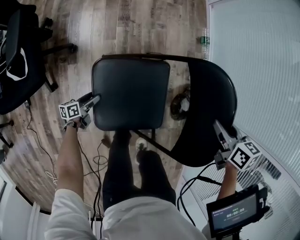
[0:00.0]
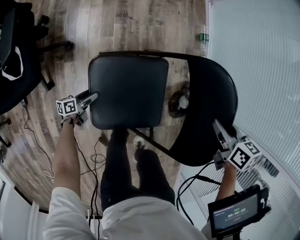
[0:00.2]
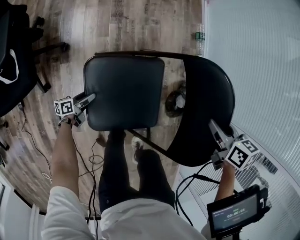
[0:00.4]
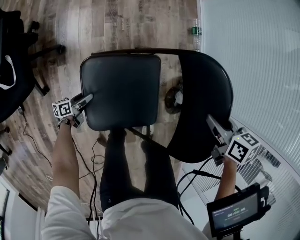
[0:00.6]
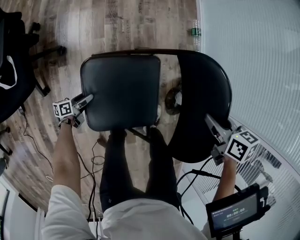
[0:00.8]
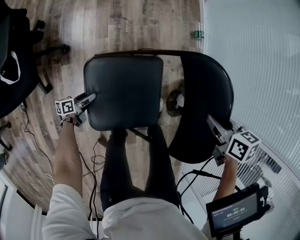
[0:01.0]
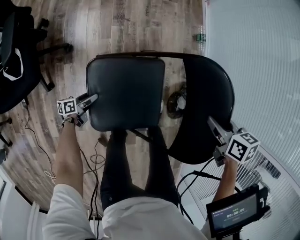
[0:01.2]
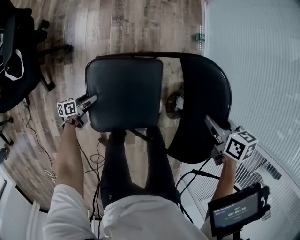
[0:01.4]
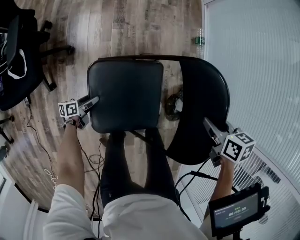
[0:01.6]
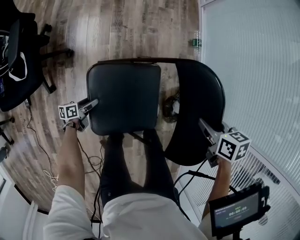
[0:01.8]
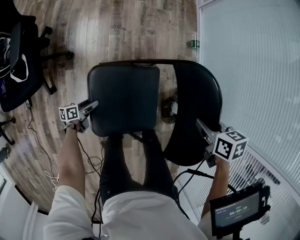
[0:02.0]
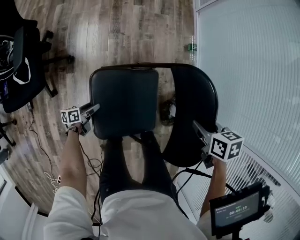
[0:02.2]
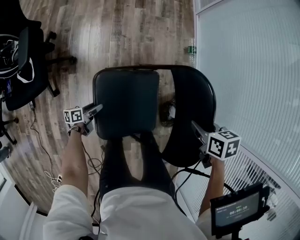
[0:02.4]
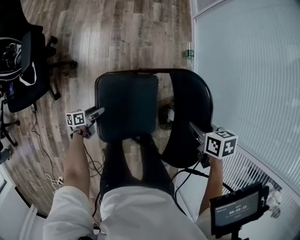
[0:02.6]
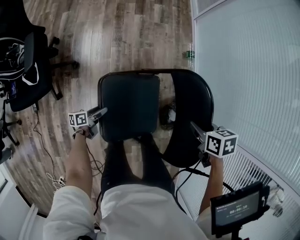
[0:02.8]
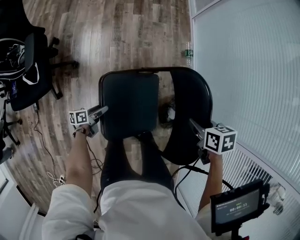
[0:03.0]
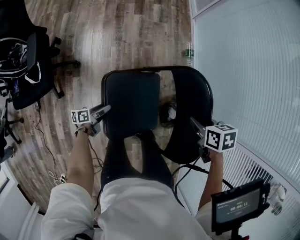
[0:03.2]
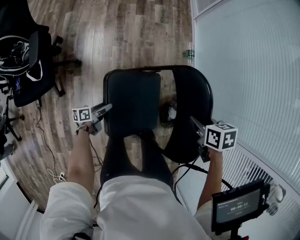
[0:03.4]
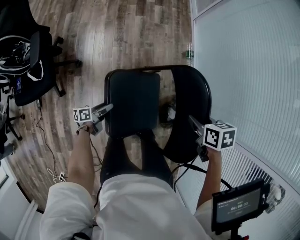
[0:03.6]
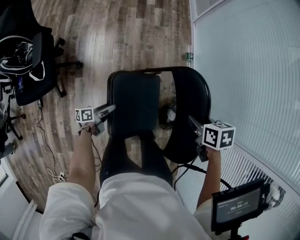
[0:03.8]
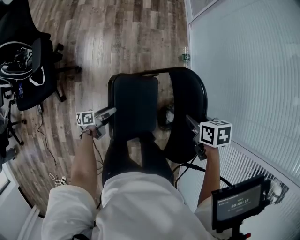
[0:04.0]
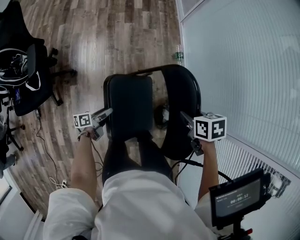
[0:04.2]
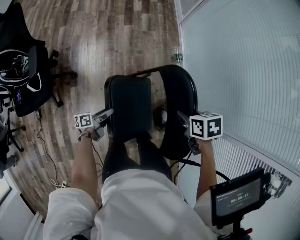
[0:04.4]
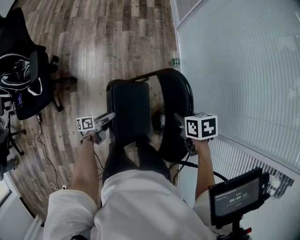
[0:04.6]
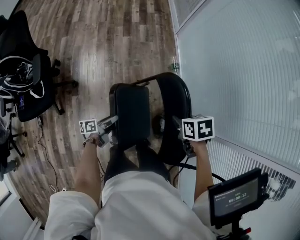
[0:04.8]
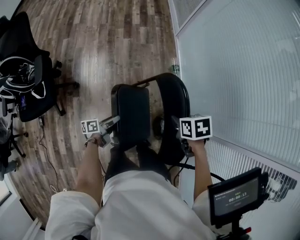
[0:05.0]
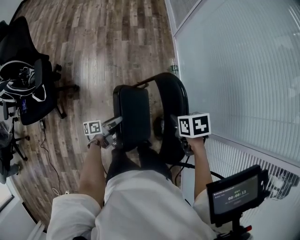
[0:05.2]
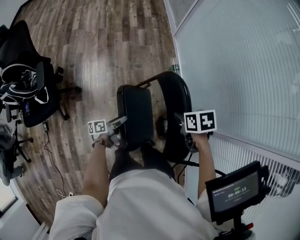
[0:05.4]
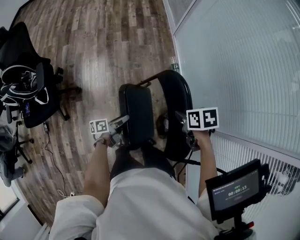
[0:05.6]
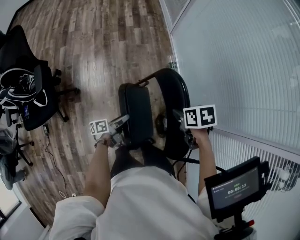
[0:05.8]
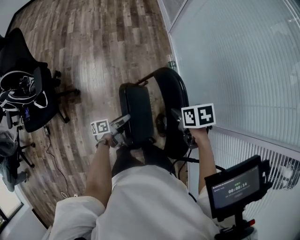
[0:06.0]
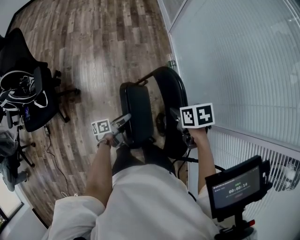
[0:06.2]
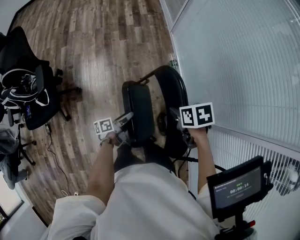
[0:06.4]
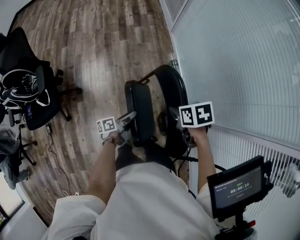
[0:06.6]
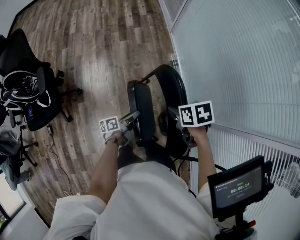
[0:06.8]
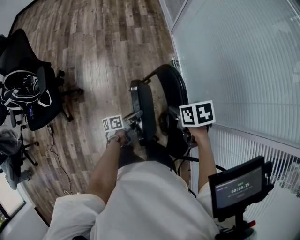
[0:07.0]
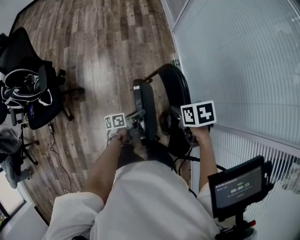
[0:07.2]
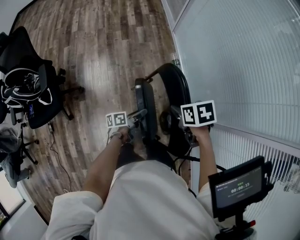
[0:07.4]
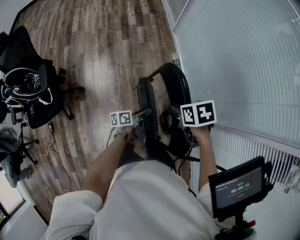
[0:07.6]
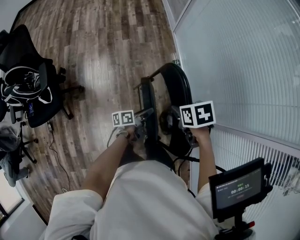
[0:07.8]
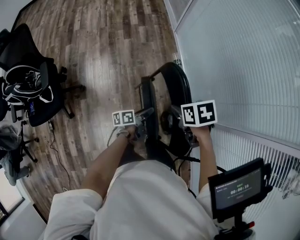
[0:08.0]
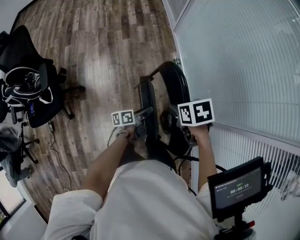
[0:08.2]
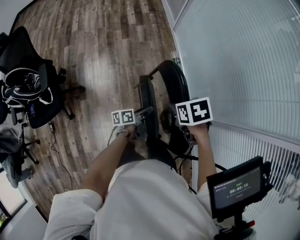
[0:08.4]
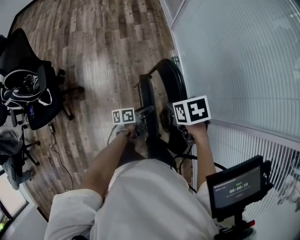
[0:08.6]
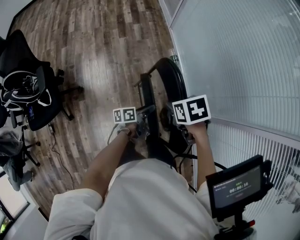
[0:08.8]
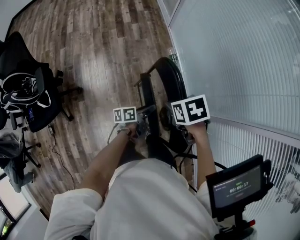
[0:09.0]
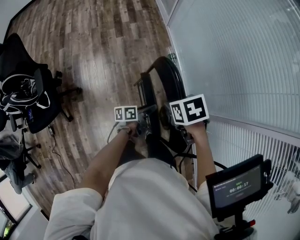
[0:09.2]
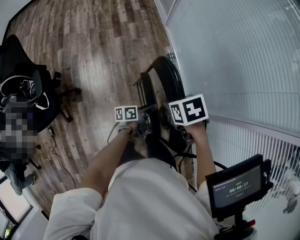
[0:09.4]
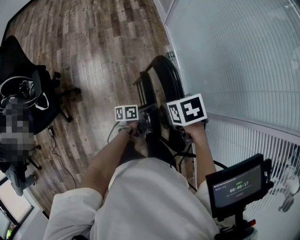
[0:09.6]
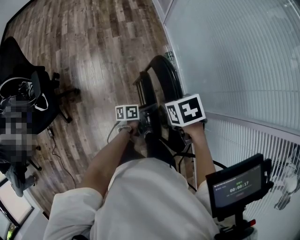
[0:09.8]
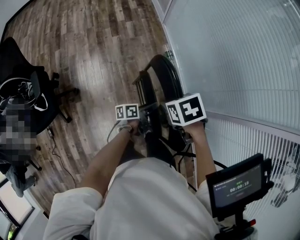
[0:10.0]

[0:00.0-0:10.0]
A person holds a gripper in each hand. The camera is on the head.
0:00.0 to 0:01.4: There are only small adjustments of the grippers.
0:01.4 to 0:02.8: The left gripper moves upward and to the right, approximately 10 cm.
0:02.8 to 0:04.2: The left gripper is displaced upward and to the right by approximately 10 cm.
0:04.2 to 0:05.8: The left gripper goes about 15 cm to the right and upward.
0:05.8 to 0:07.2: The left gripper is displaced to the right by roughly 5 cm.
0:07.2 to 0:08.6: The grippers move only a little.
0:08.6 to 0:10.0: The grippers move only a little.

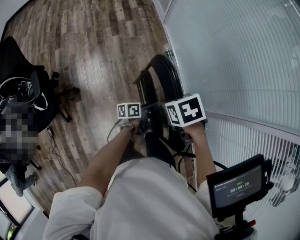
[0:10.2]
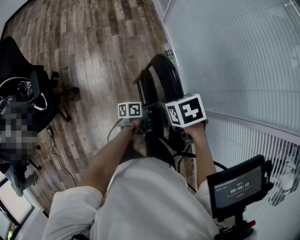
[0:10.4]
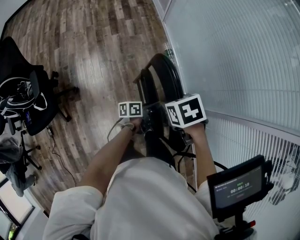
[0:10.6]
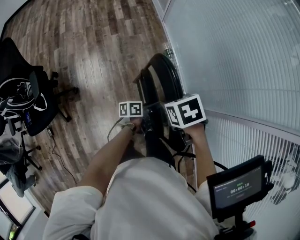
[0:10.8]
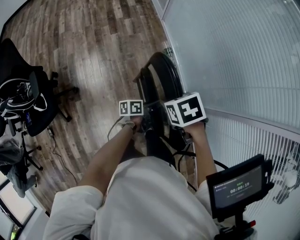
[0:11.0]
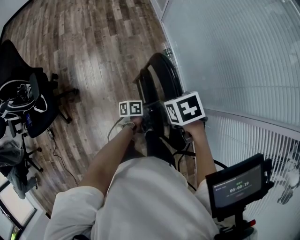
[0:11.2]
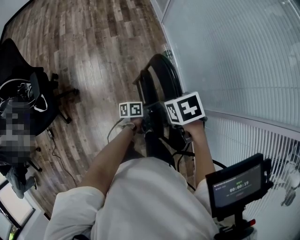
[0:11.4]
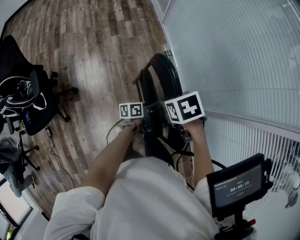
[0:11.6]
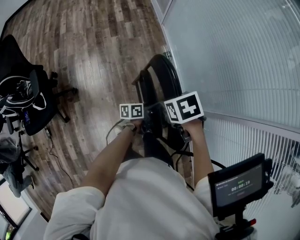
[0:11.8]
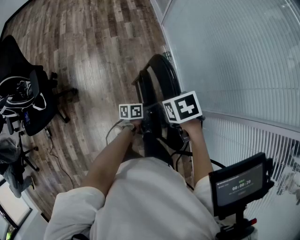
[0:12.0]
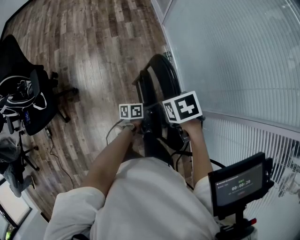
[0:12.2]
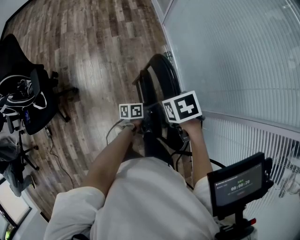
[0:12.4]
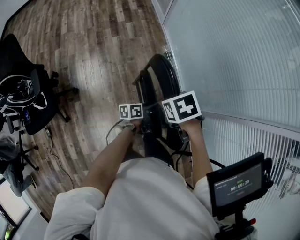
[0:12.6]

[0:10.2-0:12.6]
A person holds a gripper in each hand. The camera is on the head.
0:10.2 to 0:11.4: Both grippers stay put.
0:11.4 to 0:12.6: The grippers stay close to where they were, moving slightly.

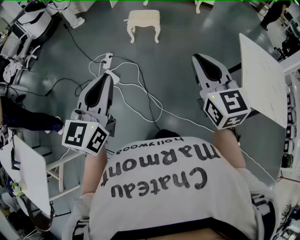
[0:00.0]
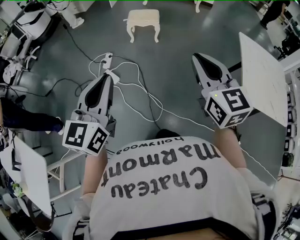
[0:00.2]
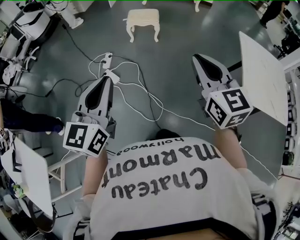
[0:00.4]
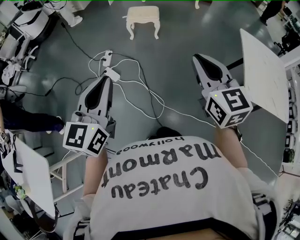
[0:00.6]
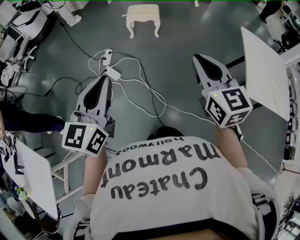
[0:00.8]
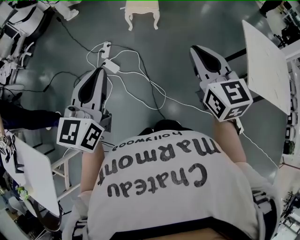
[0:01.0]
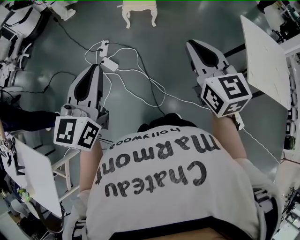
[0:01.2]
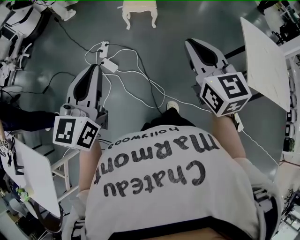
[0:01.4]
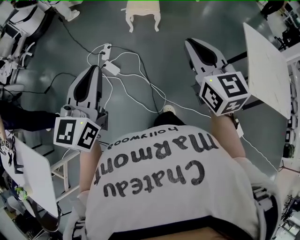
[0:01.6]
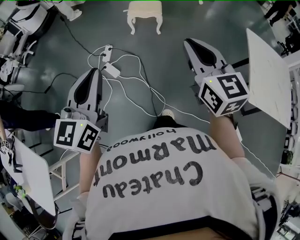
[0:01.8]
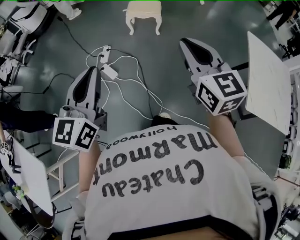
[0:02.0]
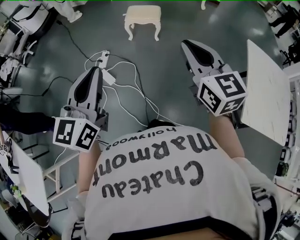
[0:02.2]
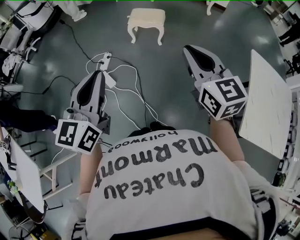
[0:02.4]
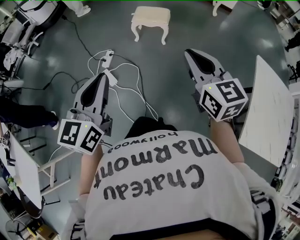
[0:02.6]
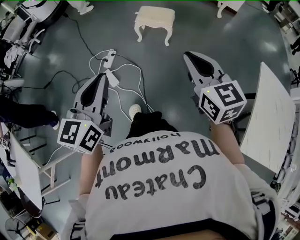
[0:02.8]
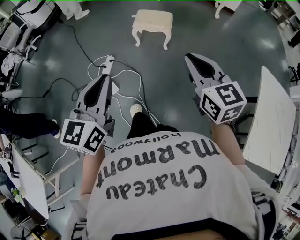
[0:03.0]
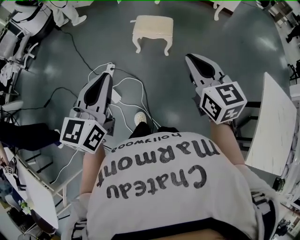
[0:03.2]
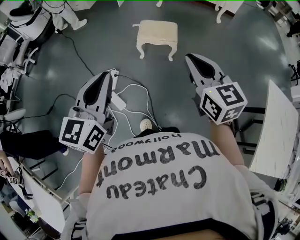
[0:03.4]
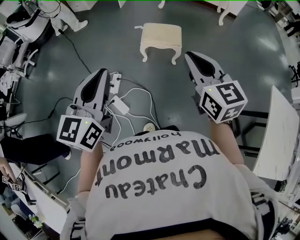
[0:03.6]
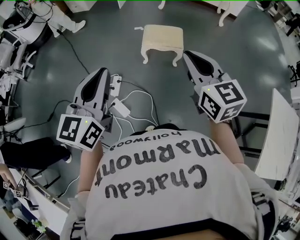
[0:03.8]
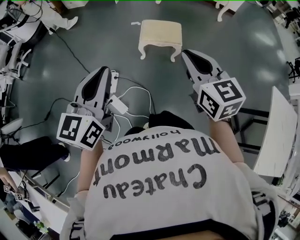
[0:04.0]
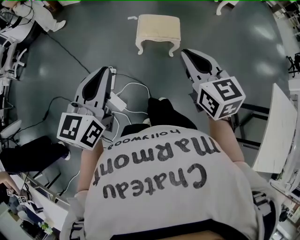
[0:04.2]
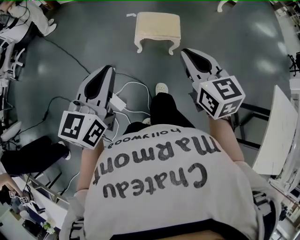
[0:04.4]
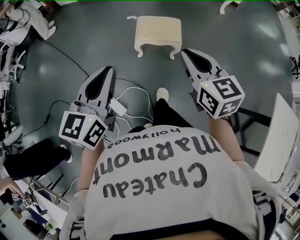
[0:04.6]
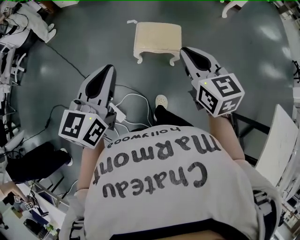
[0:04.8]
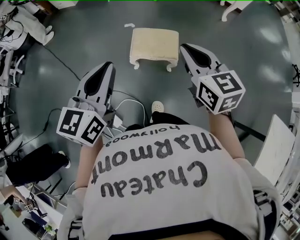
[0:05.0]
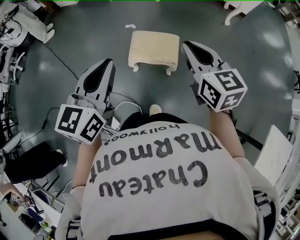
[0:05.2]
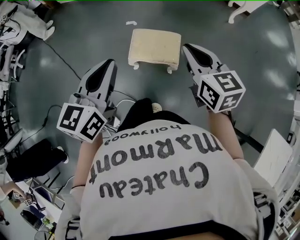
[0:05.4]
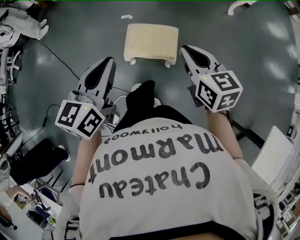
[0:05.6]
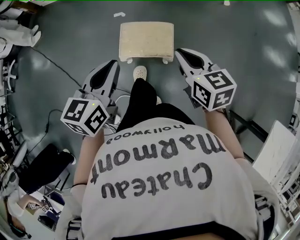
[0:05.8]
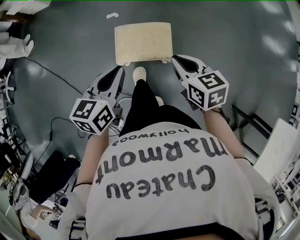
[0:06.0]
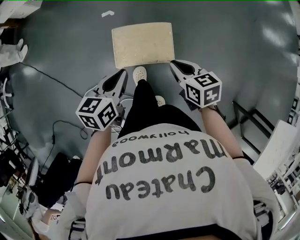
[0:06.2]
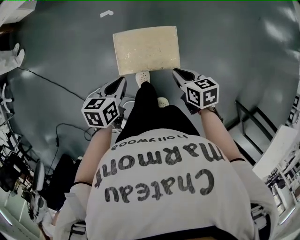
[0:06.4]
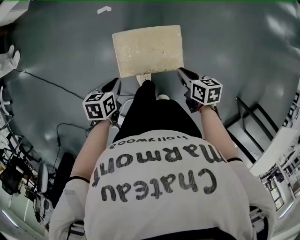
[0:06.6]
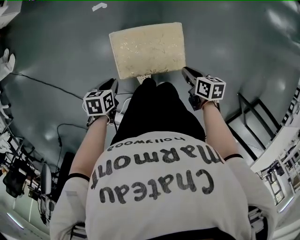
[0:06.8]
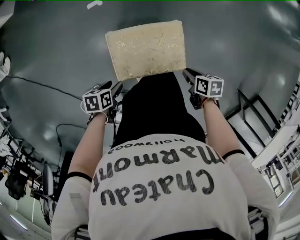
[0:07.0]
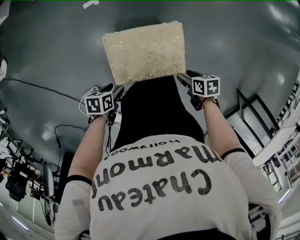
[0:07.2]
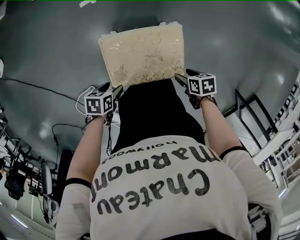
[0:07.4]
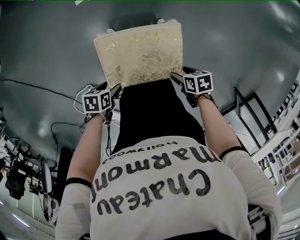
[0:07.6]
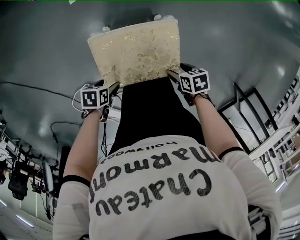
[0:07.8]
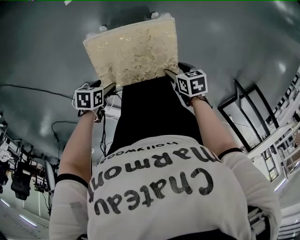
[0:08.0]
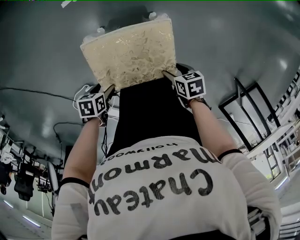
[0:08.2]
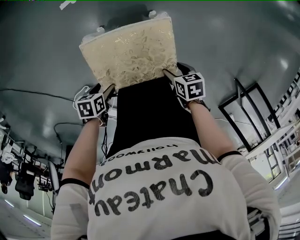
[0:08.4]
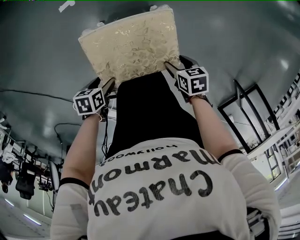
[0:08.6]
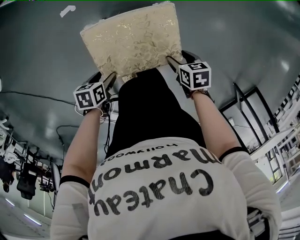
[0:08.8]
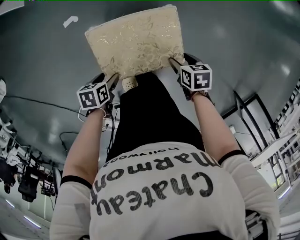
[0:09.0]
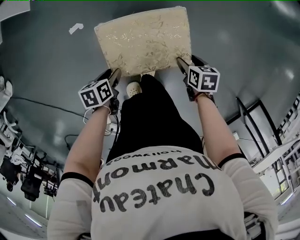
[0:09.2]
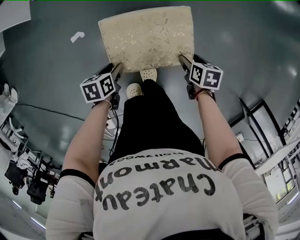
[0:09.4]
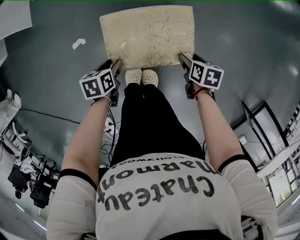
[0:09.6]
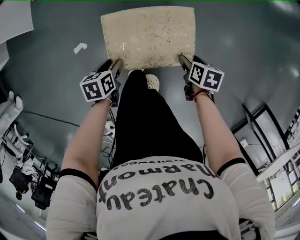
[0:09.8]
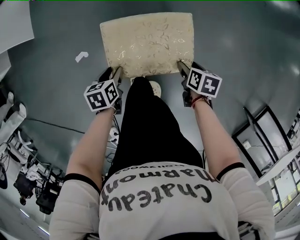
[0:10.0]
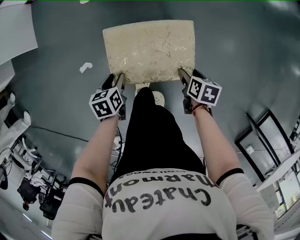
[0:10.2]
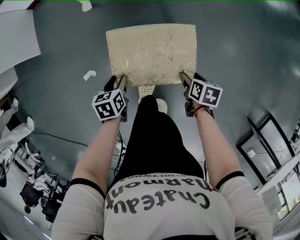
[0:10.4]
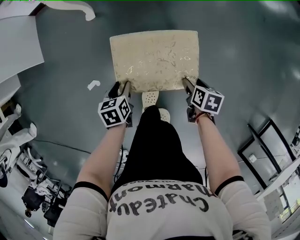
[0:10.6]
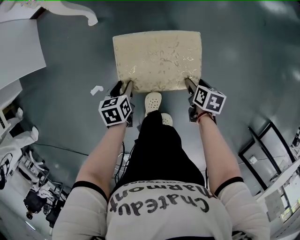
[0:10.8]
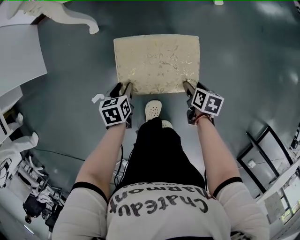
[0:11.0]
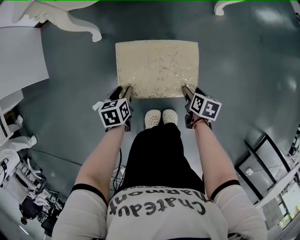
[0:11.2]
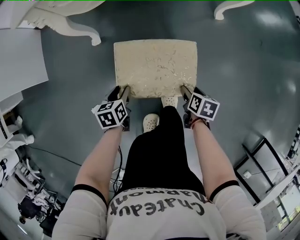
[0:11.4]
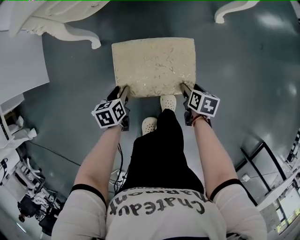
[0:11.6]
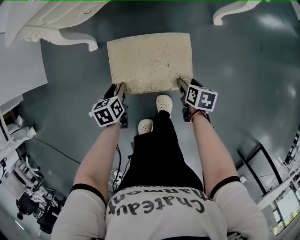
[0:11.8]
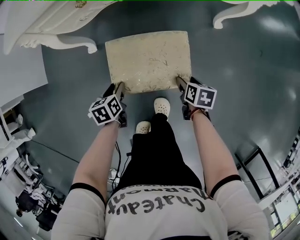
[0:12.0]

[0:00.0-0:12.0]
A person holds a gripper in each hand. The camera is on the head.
0:00.0 to 0:01.6: The two grippers go approximately 5 cm to the left.
0:01.6 to 0:03.0: Both grippers move forward, some 30 cm.
0:03.0 to 0:04.4: The right gripper moves forward and to the left, some 30 cm, while the left gripper moves forward, approximately 30 cm.
0:04.4 to 0:06.0: The two grippers go roughly 40 cm forward and downward. The right gripper turns by some 20 degrees, while the left gripper swivels some 20 degrees.
0:06.0 to 0:07.6: Both grippers move downward, about 40 cm. The left gripper points its fingers approximately 30 degrees further downward, and opens up. The right gripper swivels about 50 degrees, and opens up.
0:07.6 to 0:09.0: The right gripper changes place by roughly 20 cm. Meanwhile the left gripper changes place by roughly 20 cm.
0:09.0 to 0:10.4: The right gripper ends up approximately 20 cm from where it was, and turns by approximately 30 degrees, while the left gripper changes place by approximately 30 cm, turns by some 20 degrees, and closes its fingers.
0:10.4 to 0:12.0: The grippers both shift forward by some 35 cm.
